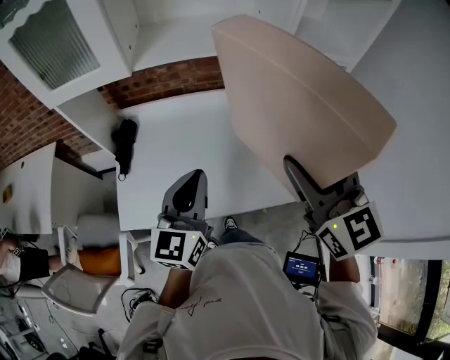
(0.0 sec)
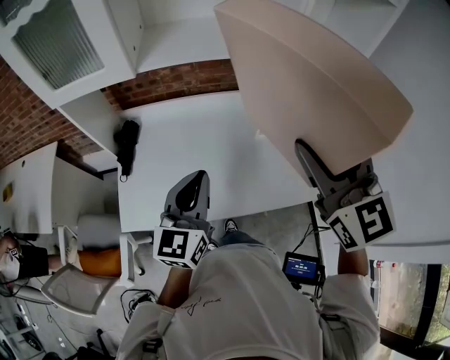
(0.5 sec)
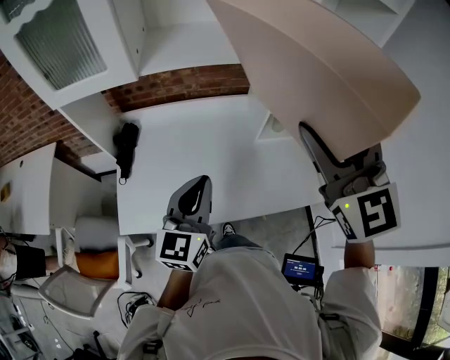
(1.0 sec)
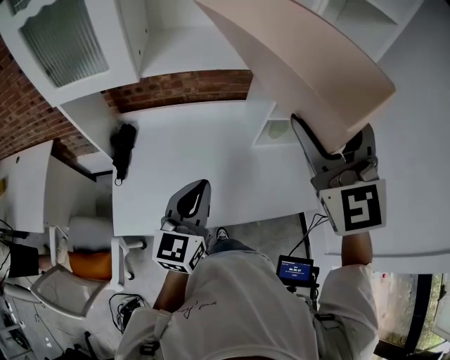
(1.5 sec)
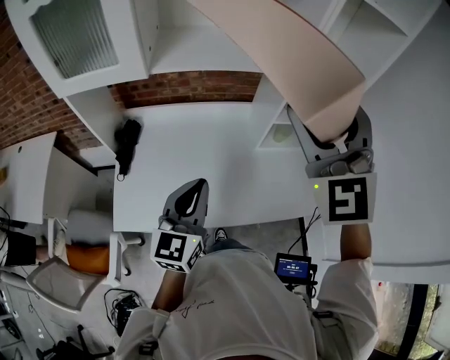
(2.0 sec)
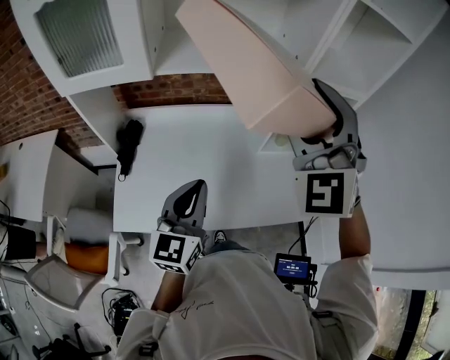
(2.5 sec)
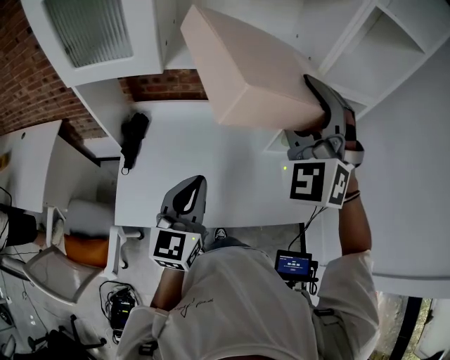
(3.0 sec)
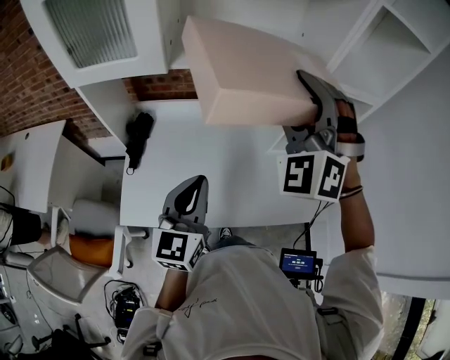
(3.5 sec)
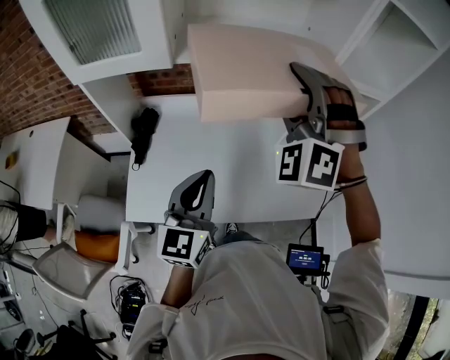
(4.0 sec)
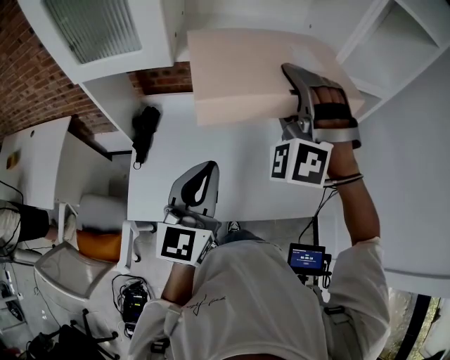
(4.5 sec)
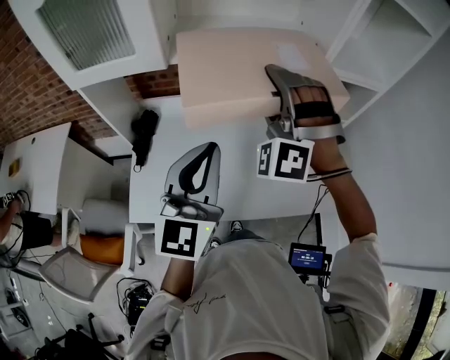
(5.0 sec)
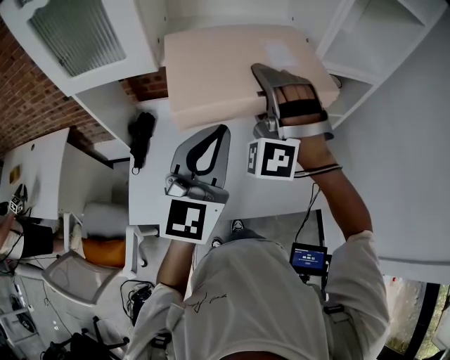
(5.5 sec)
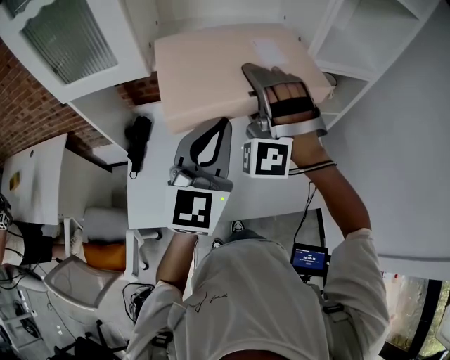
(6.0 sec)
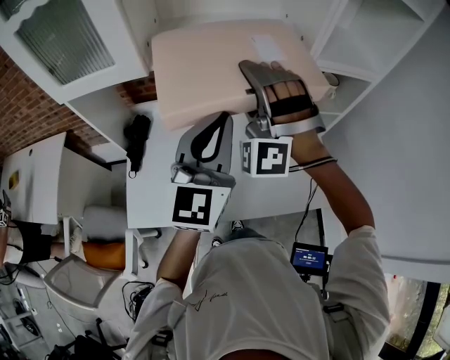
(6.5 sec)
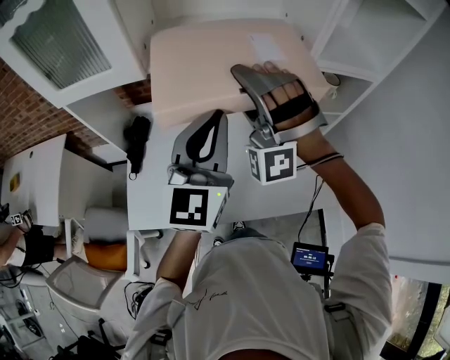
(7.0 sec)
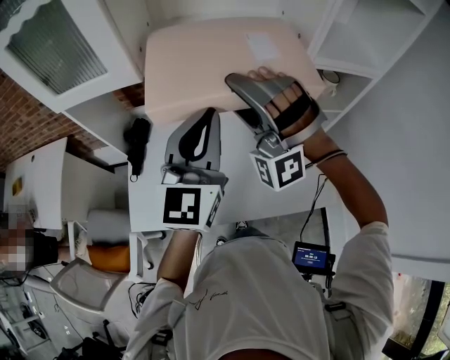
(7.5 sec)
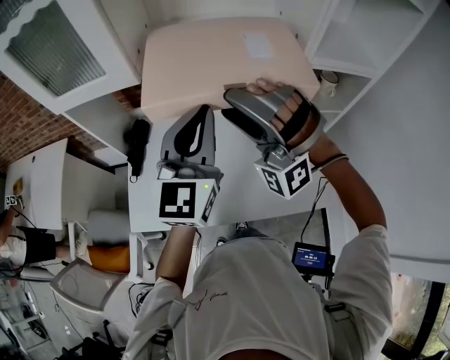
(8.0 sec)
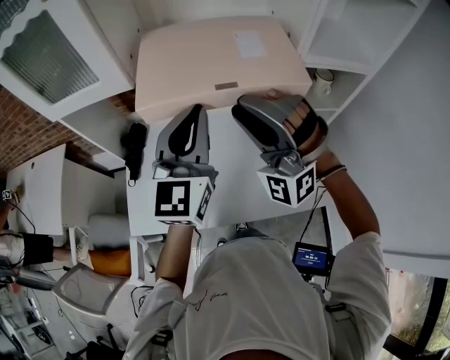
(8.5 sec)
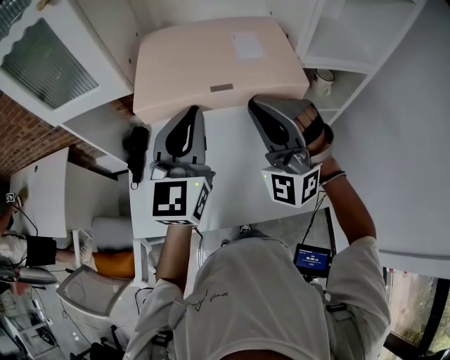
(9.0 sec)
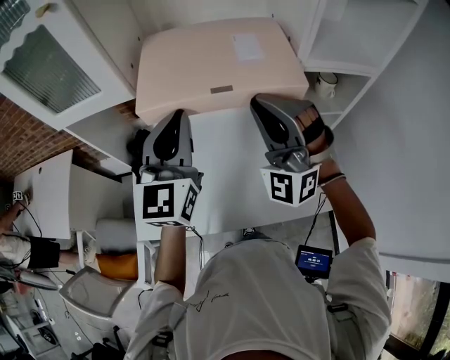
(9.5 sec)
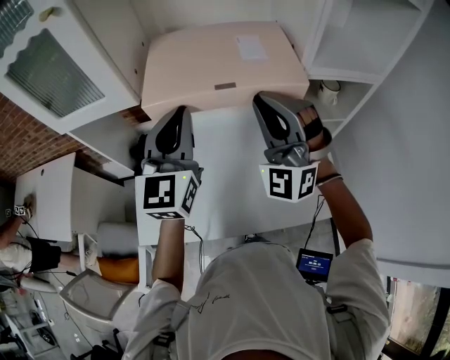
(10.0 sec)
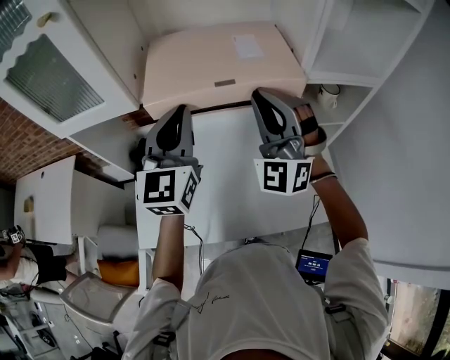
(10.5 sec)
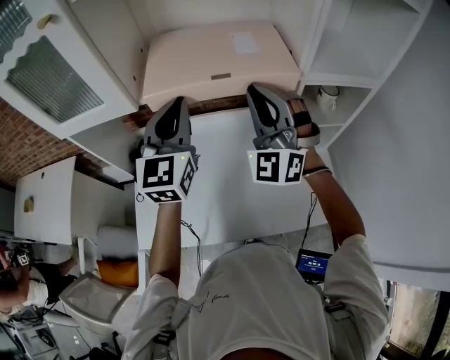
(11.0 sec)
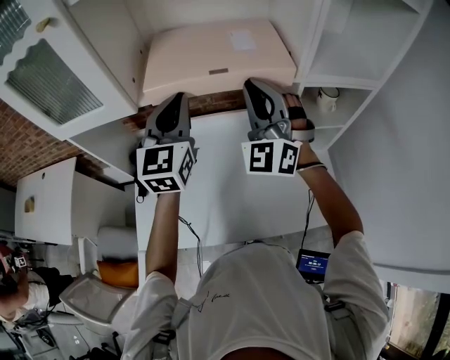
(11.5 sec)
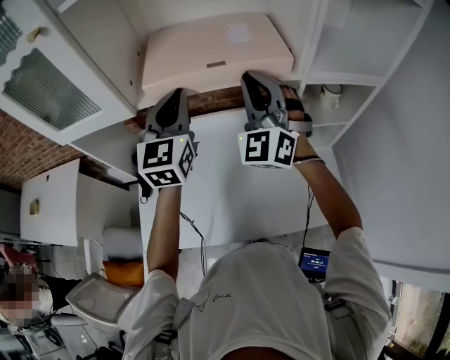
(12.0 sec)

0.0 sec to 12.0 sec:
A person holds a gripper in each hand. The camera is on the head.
0.0 sec to 2.0 sec: The right gripper shifts some 15 cm upward and forward, and turns by about 40 degrees.
2.0 sec to 4.0 sec: The right gripper goes about 15 cm forward, downward and to the left, and swivels some 40 degrees.
4.0 sec to 6.0 sec: The left gripper shifts about 15 cm upward, forward and to the right. The right gripper moves some 5 cm.
6.0 sec to 8.0 sec: The right gripper ends up some 5 cm from where it was, and rotates approximately 30 degrees.
8.0 sec to 10.0 sec: The right gripper shifts roughly 10 cm to the right, turns by some 30 degrees, and closes up, while the left gripper moves forward, some 5 cm.
10.0 sec to 12.0 sec: Both grippers move forward, some 10 cm.

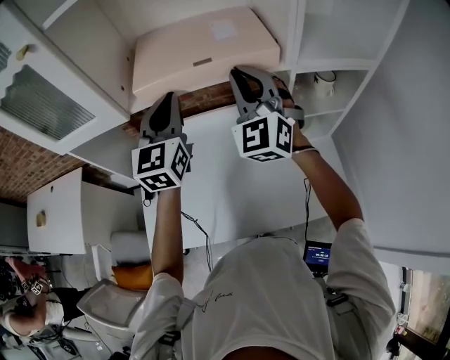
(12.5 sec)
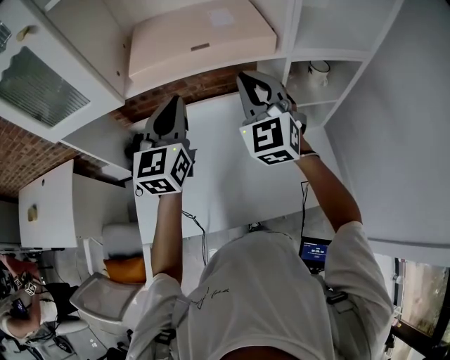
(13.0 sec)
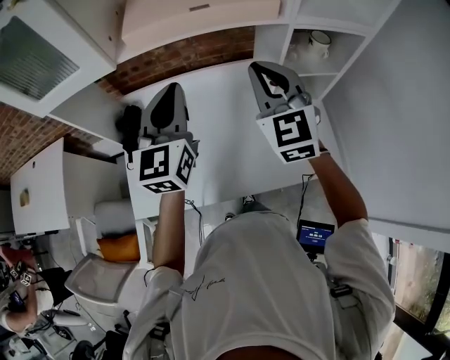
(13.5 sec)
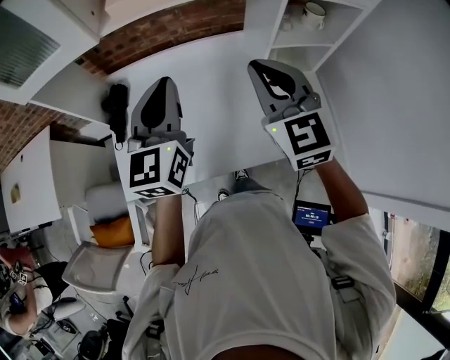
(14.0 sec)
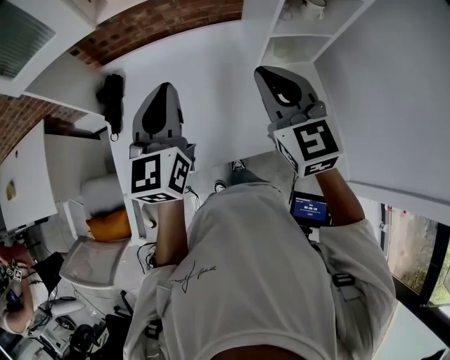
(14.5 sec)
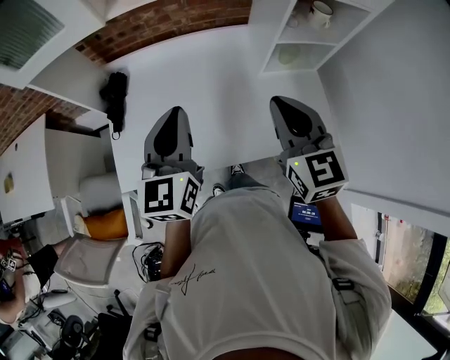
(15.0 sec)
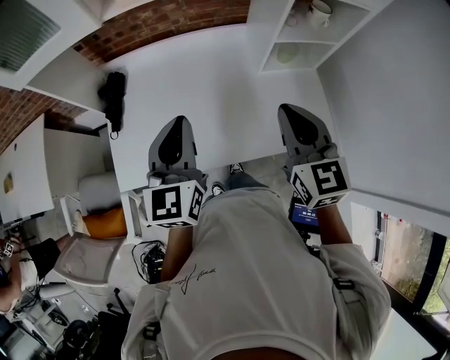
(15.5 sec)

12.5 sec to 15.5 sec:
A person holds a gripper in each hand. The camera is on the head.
12.5 sec to 14.0 sec: Both grippers travel together backward and downward, some 15 cm. The right gripper swivels some 30 degrees.
14.0 sec to 15.5 sec: The grippers both shift backward and downward by about 10 cm.

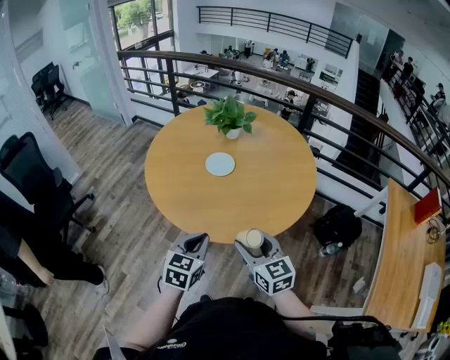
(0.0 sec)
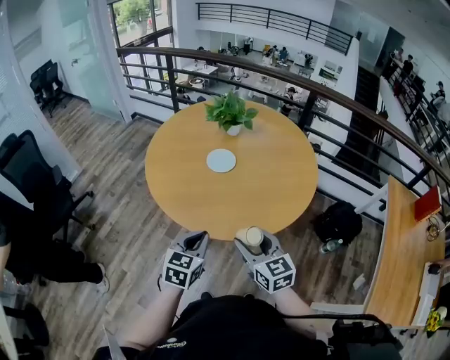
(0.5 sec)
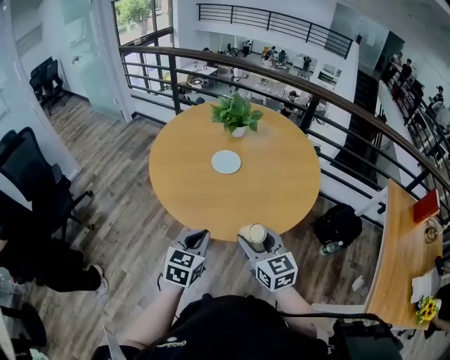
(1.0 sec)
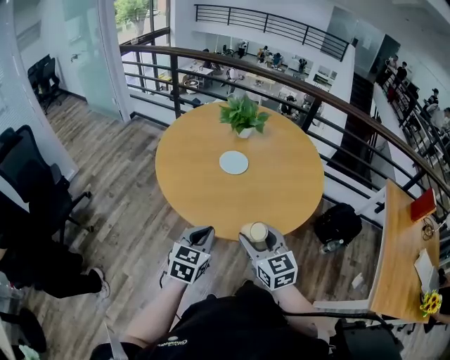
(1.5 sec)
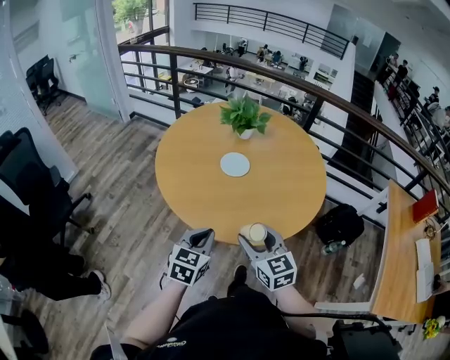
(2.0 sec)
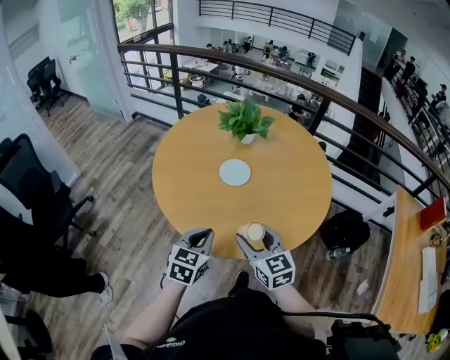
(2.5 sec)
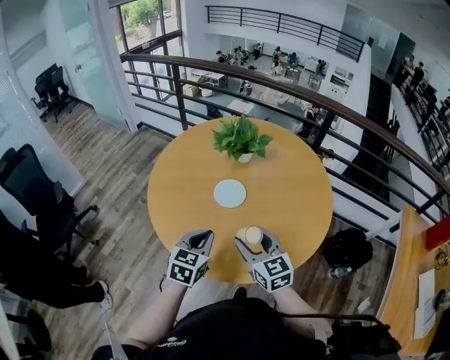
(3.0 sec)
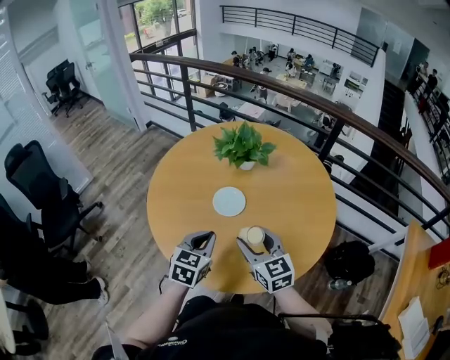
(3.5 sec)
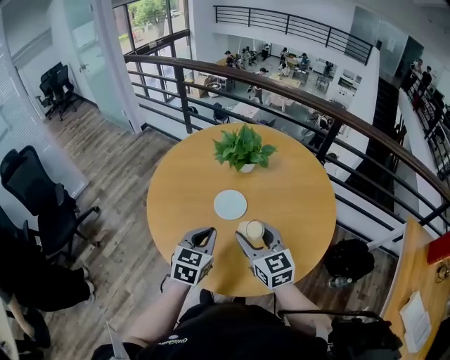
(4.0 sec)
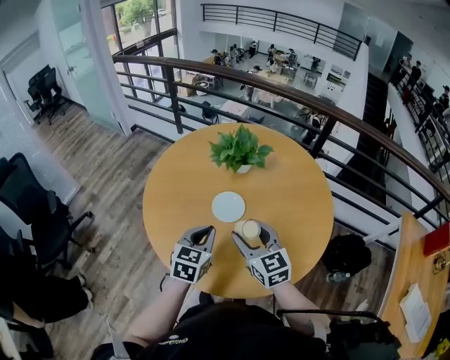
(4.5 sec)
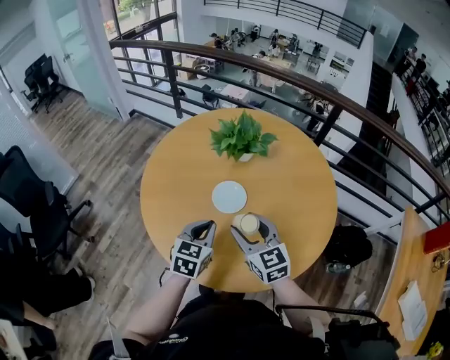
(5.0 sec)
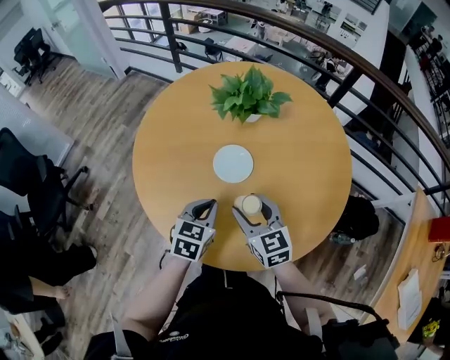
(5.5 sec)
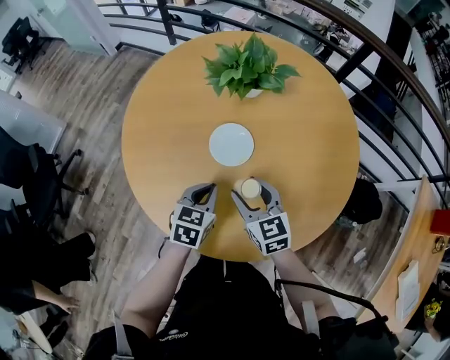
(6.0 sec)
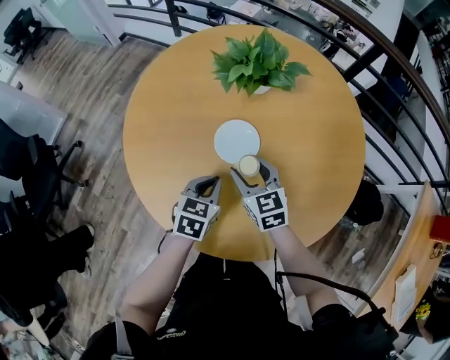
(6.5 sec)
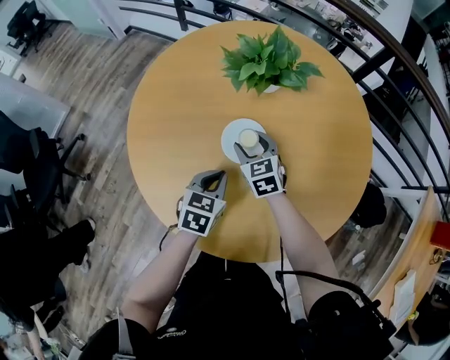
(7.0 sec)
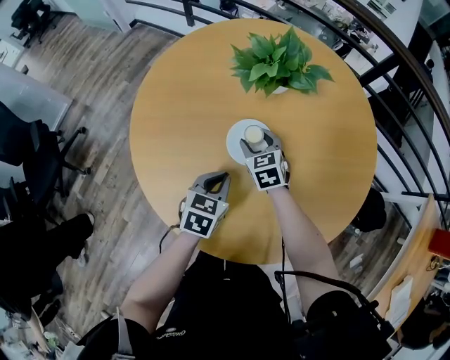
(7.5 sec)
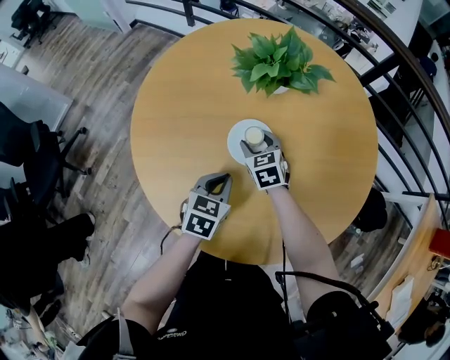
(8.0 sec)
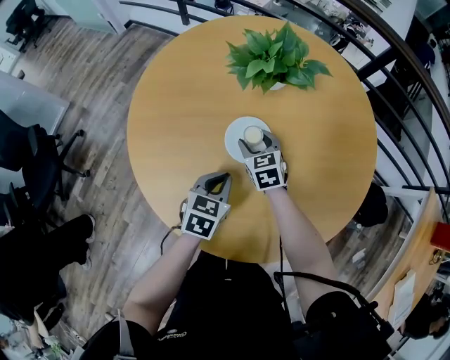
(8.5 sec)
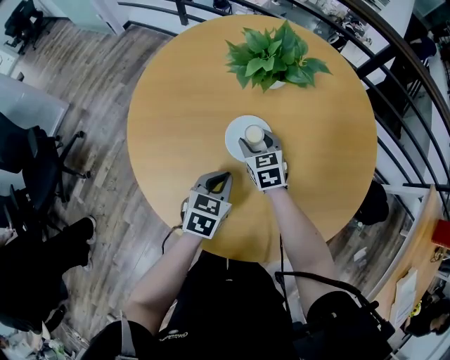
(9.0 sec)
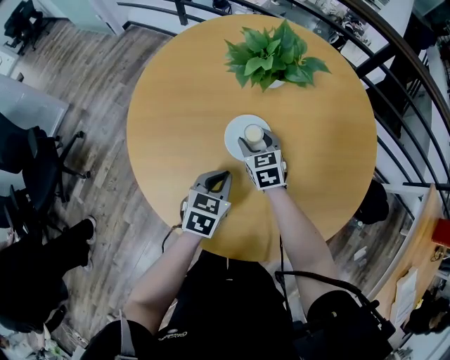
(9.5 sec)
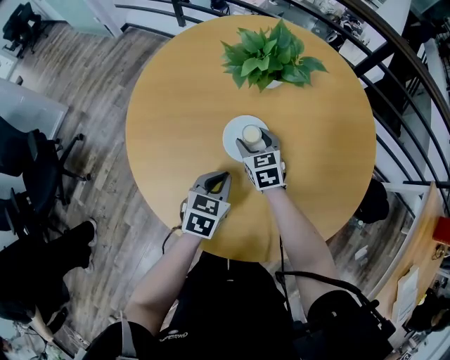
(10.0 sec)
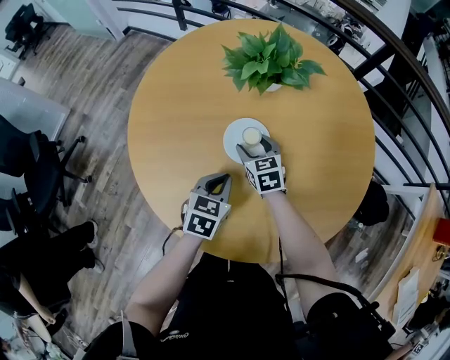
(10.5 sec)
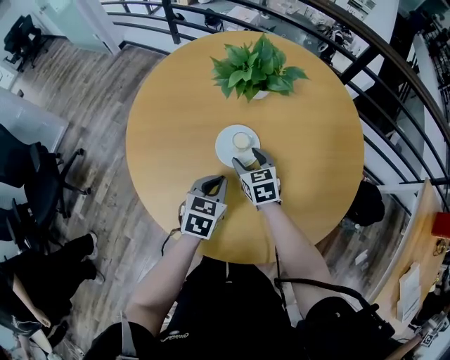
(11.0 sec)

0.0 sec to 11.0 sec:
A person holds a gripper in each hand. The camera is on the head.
0.0 sec to 2.0 sec: Both grippers travel together to the left, roughly 10 cm.
2.0 sec to 3.5 sec: Both grippers move forward and to the right, some 20 cm.
3.5 sec to 5.5 sec: The two grippers go about 10 cm downward and forward.
5.5 sec to 7.5 sec: The left gripper moves downward and forward, some 10 cm. Meanwhile the right gripper heads forward and downward, covering about 25 cm.
7.5 sec to 11.0 sec: The grippers stay close to where they were, moving slightly.

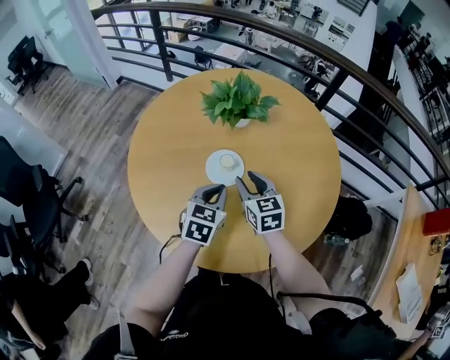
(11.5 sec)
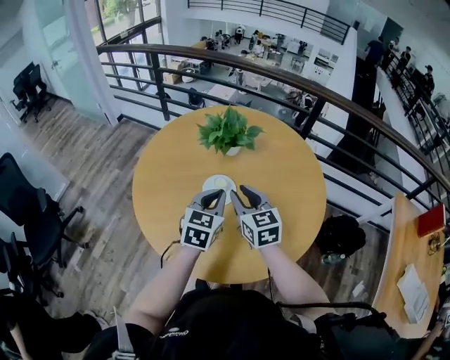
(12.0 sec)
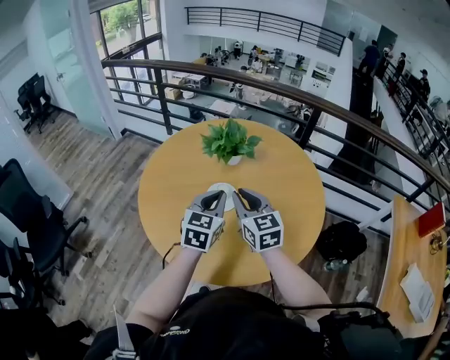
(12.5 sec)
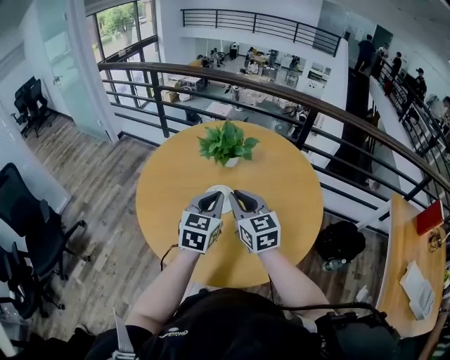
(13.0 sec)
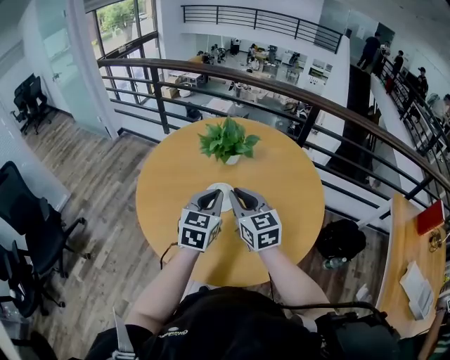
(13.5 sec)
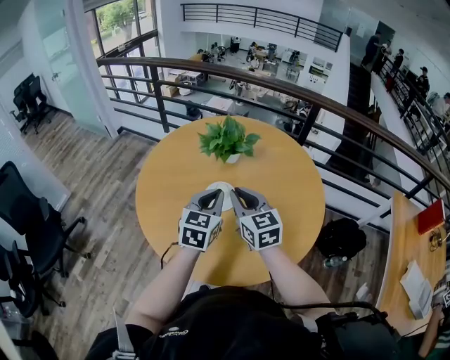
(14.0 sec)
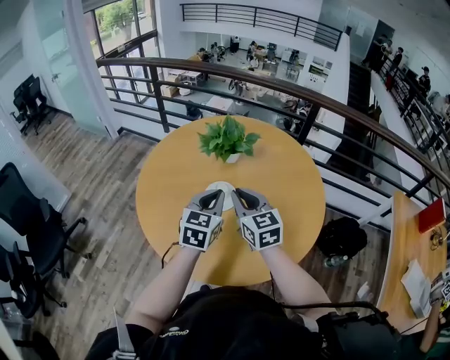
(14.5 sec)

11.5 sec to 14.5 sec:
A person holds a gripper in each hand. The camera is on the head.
11.5 sec to 13.0 sec: The left gripper heads upward, covering some 15 cm, while the right gripper goes some 15 cm upward and backward, and closes.
13.0 sec to 14.5 sec: The grippers move only a little.
